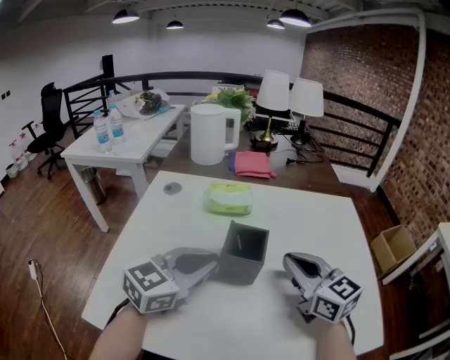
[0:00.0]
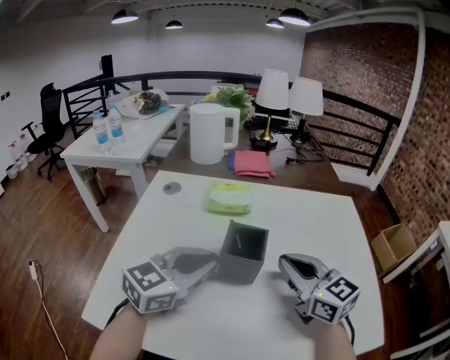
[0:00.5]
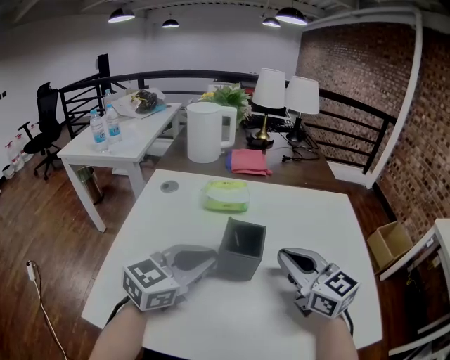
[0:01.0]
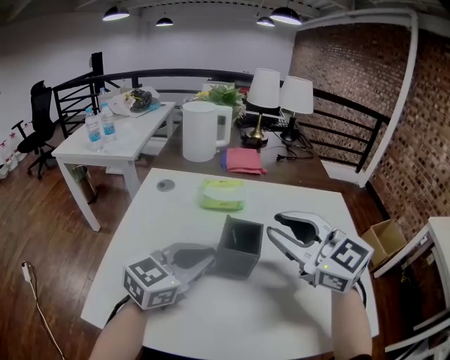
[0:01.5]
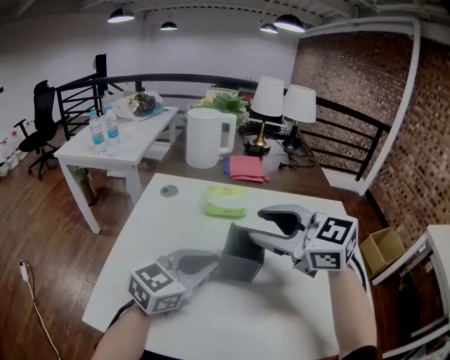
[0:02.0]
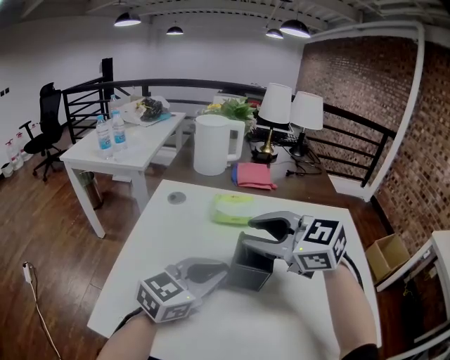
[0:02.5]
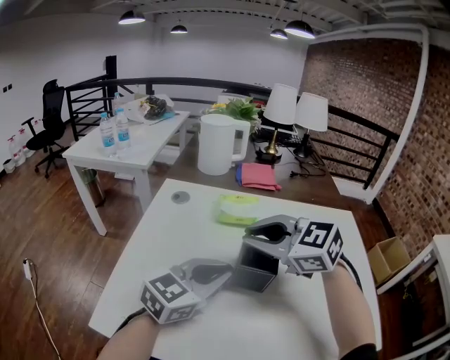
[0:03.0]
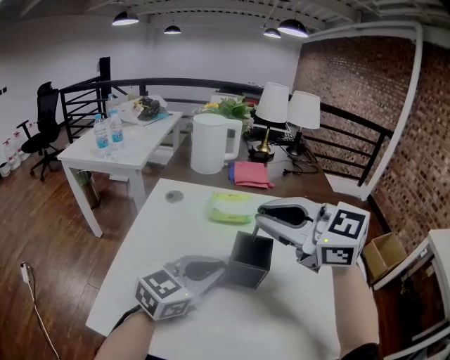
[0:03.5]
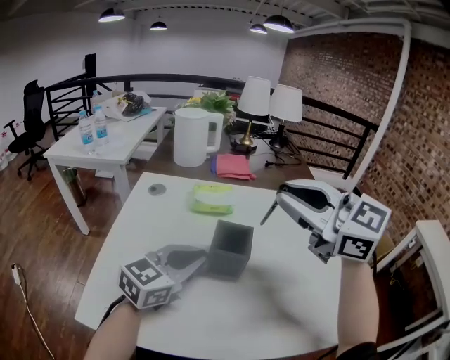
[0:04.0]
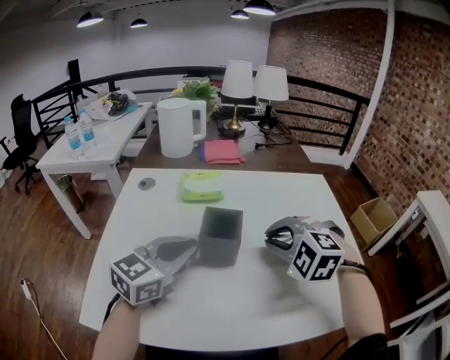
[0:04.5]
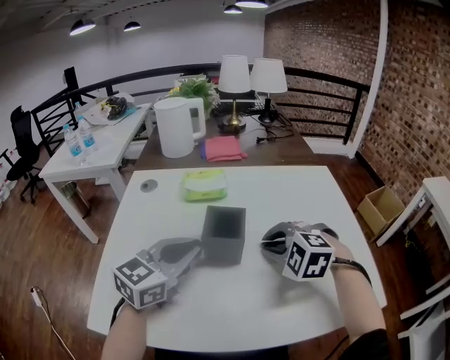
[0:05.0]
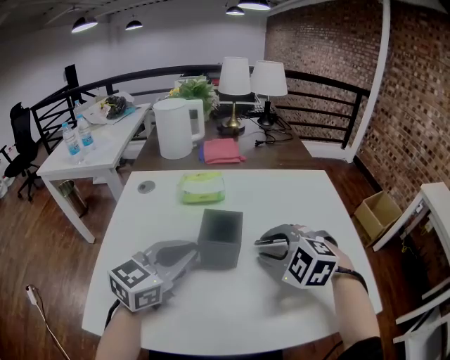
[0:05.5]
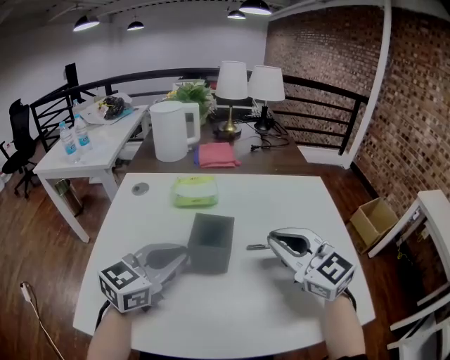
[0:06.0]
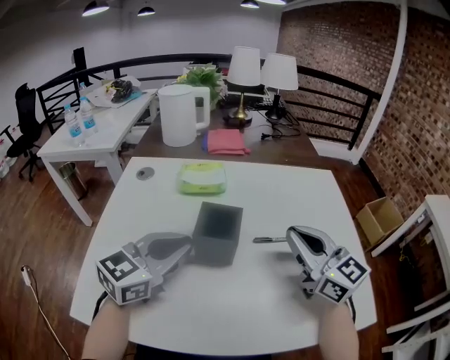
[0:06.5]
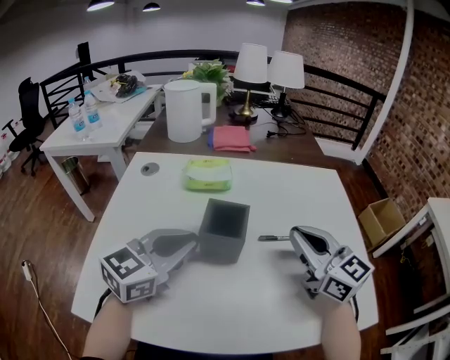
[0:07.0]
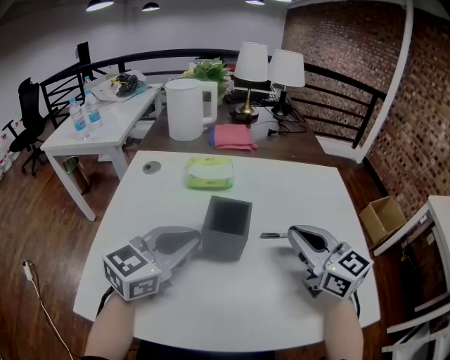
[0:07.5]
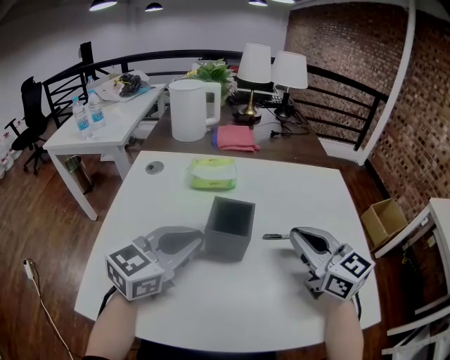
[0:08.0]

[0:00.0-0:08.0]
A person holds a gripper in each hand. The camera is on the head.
0:00.0 to 0:02.0: The right gripper shifts some 15 cm to the left and upward, turns by approximately 30 degrees, and opens its fingers.
0:02.0 to 0:04.0: The right gripper heads upward, covering approximately 10 cm, and closes.
0:04.0 to 0:06.0: The right gripper goes roughly 15 cm downward and to the right.

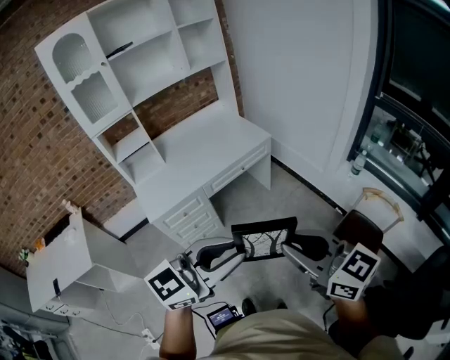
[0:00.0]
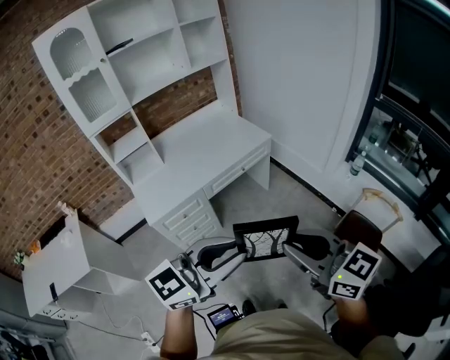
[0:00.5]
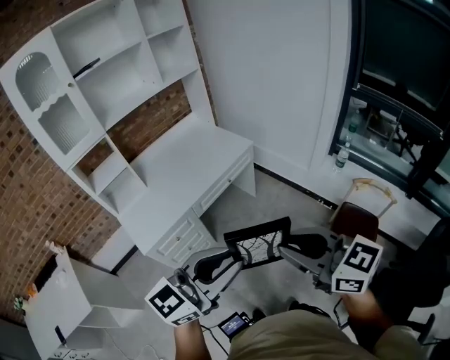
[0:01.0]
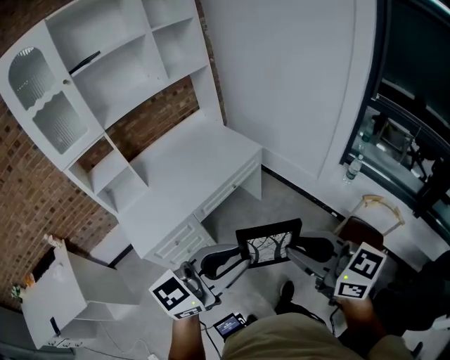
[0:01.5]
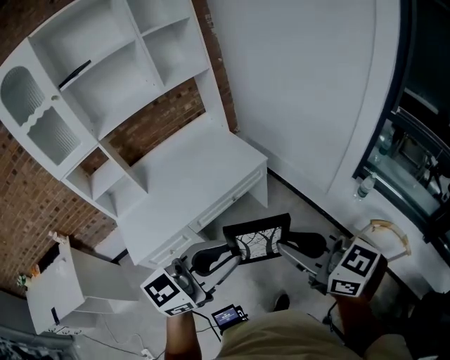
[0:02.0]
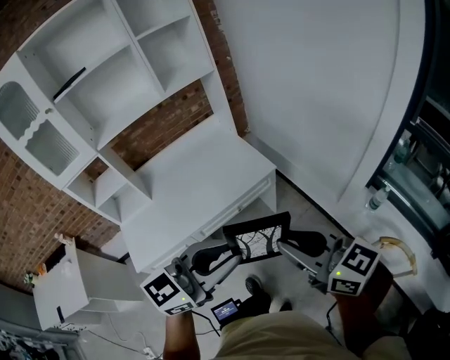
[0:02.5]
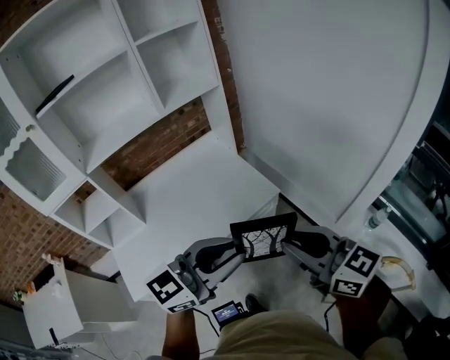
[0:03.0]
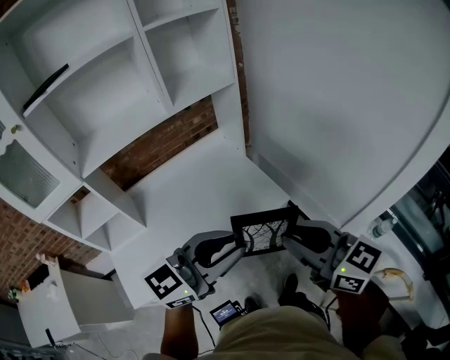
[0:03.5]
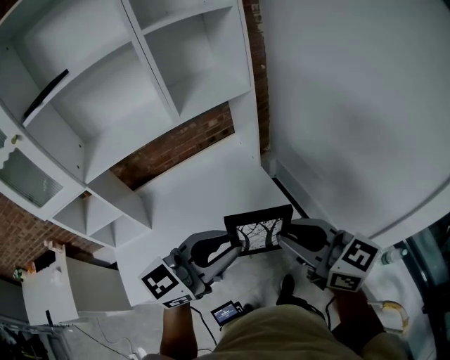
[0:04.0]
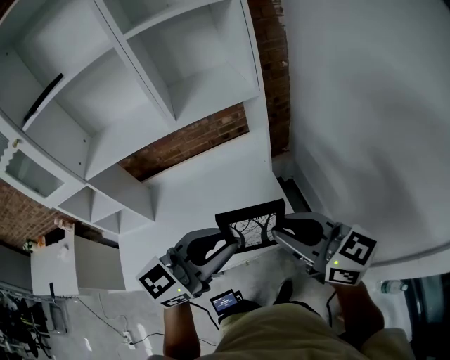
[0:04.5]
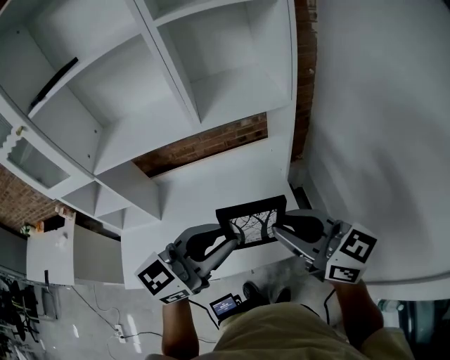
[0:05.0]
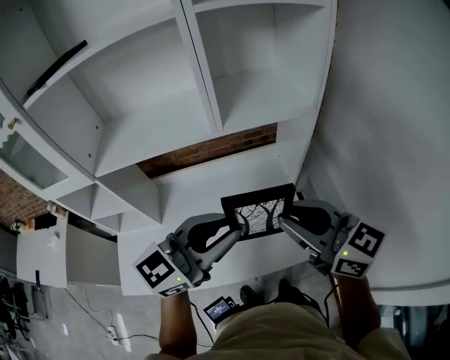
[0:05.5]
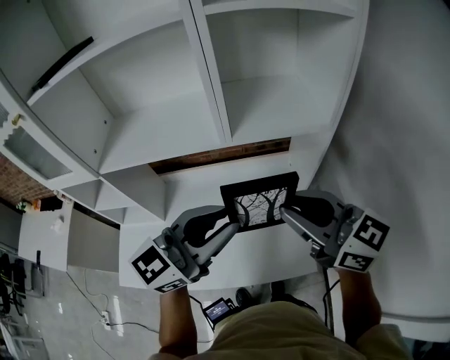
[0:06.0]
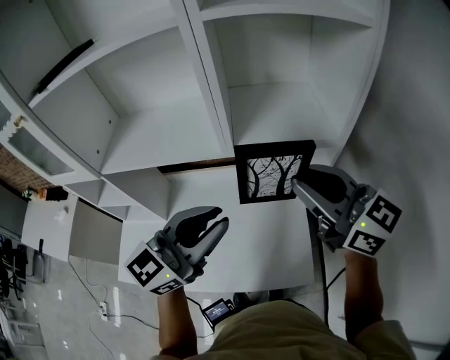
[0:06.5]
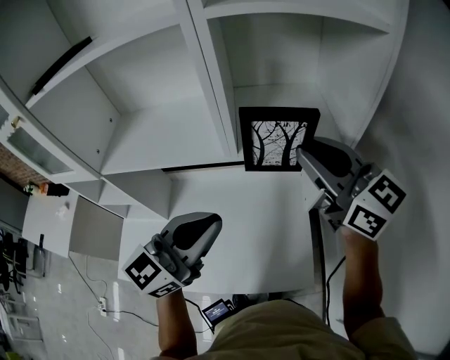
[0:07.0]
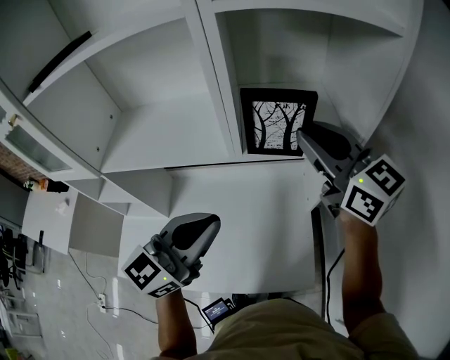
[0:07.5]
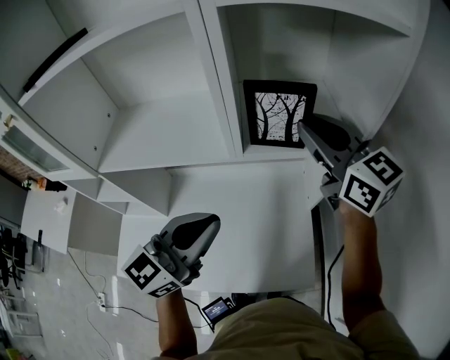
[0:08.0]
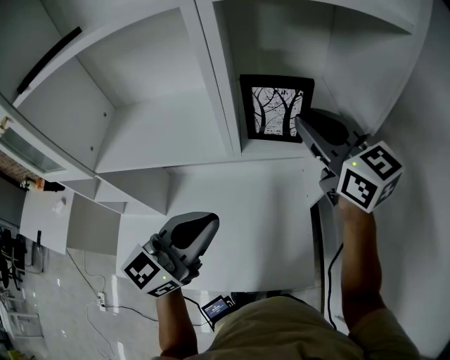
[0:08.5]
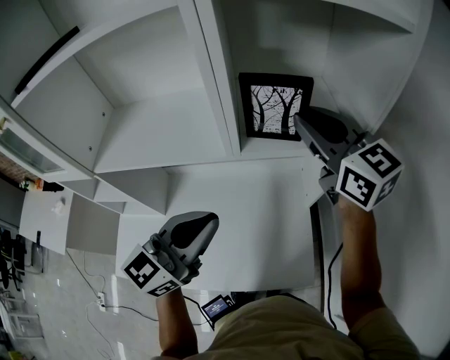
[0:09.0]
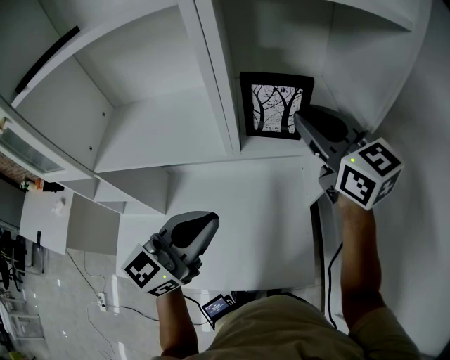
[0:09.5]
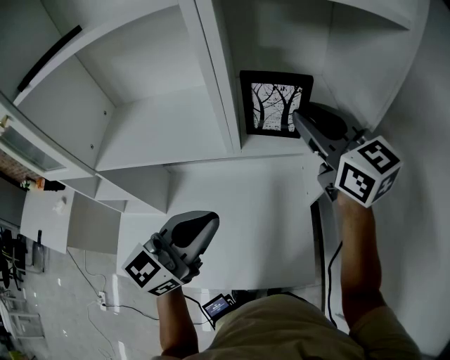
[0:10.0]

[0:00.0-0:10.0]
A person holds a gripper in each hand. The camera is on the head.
0:00.0 to 0:02.0: The grippers both shift forward by about 30 cm.
0:02.0 to 0:04.0: The pair of grippers is taken forward, approximately 40 cm.
0:04.0 to 0:06.0: Both grippers move forward, about 25 cm. The right gripper swivels roughly 20 degrees. Meanwhile the left gripper changes its angle by about 20 degrees.
0:06.0 to 0:08.0: The left gripper travels forward by about 10 cm. The right gripper travels forward by roughly 20 cm.
0:08.0 to 0:10.0: Both grippers stay put.

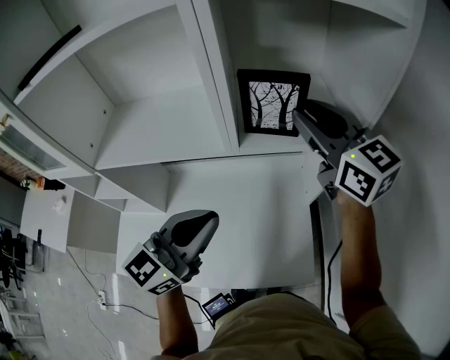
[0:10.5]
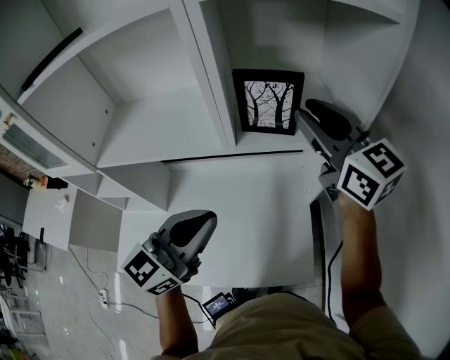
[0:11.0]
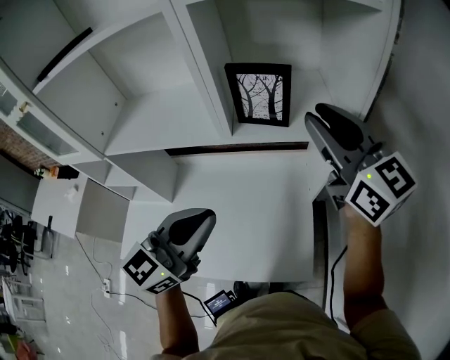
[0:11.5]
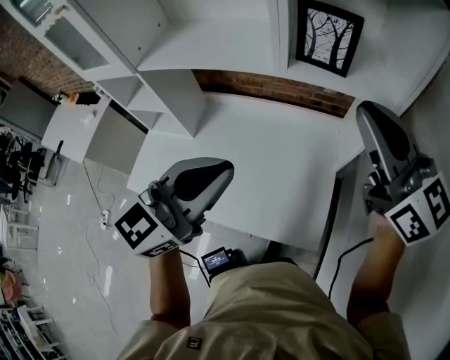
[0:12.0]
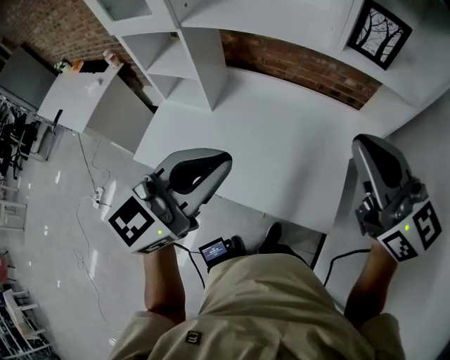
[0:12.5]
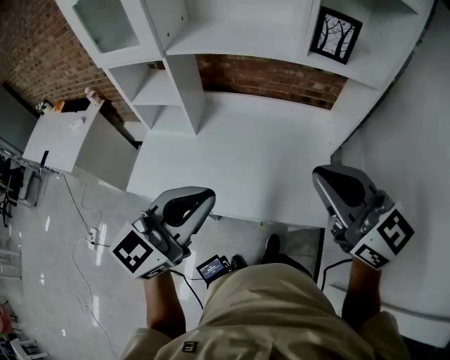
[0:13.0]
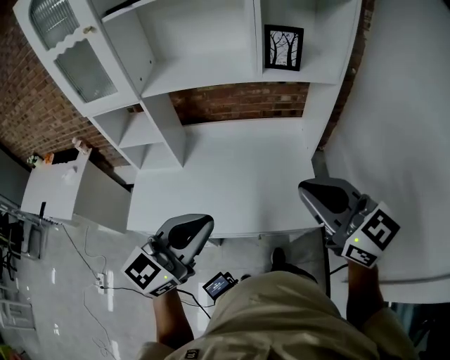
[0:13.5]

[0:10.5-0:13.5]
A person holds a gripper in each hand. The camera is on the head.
0:10.5 to 0:12.0: The right gripper travels backward by approximately 15 cm. The left gripper heads backward, covering some 10 cm.
0:12.0 to 0:13.5: Both grippers travel together backward and to the left, approximately 25 cm.

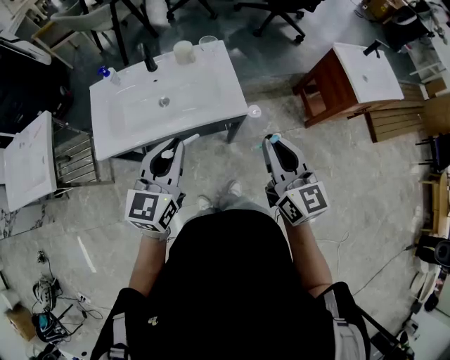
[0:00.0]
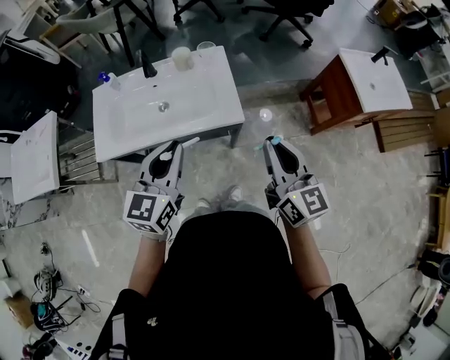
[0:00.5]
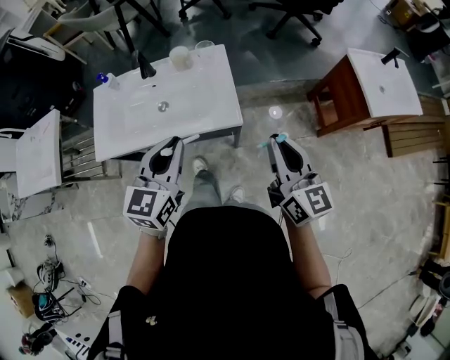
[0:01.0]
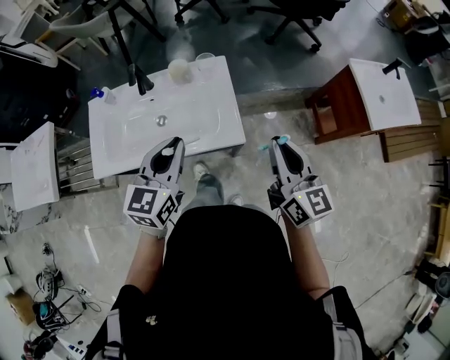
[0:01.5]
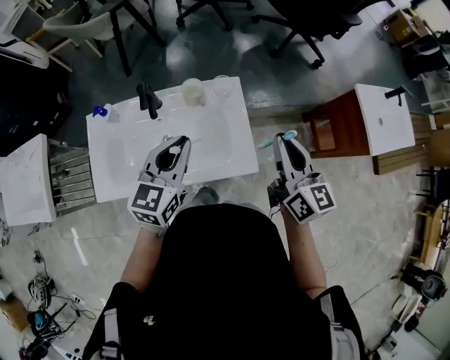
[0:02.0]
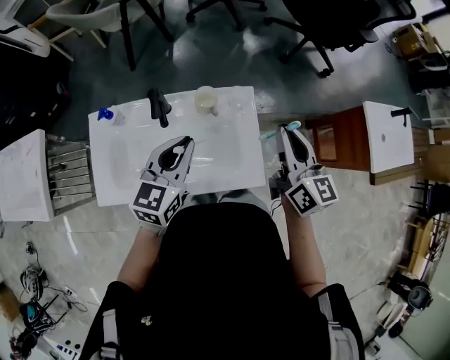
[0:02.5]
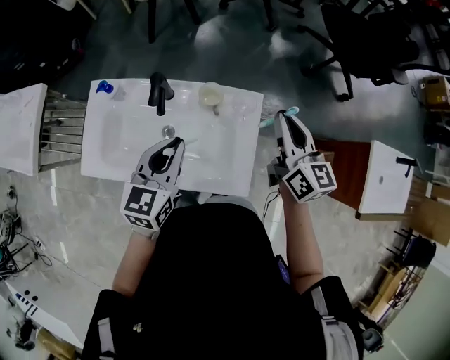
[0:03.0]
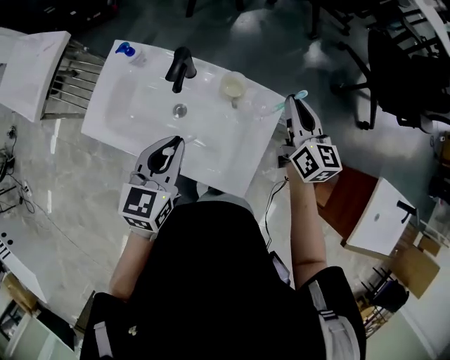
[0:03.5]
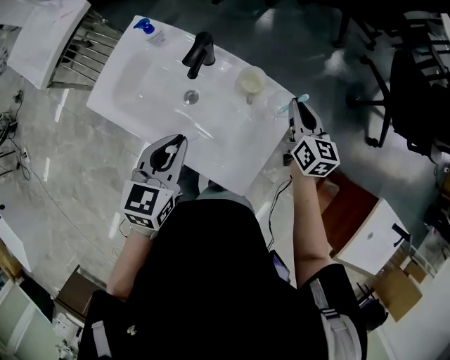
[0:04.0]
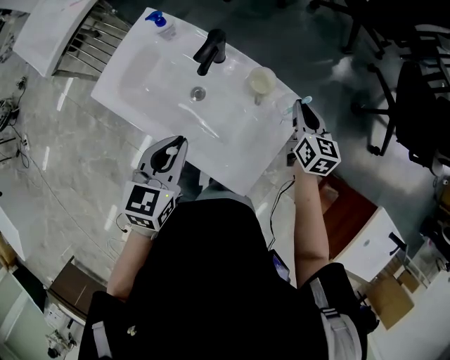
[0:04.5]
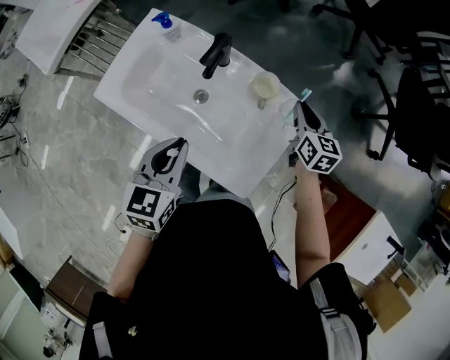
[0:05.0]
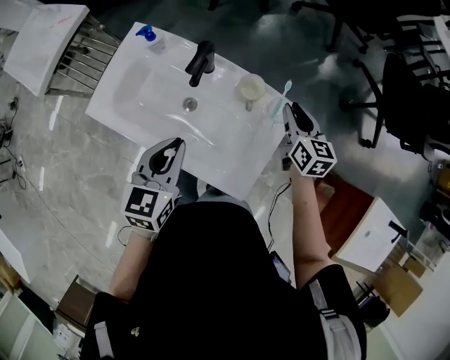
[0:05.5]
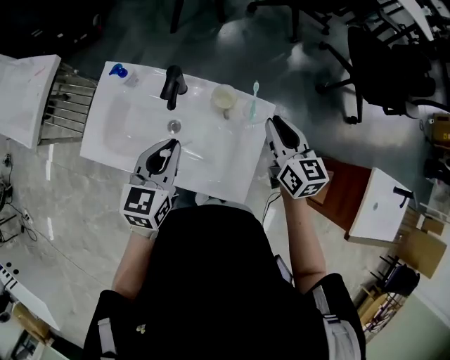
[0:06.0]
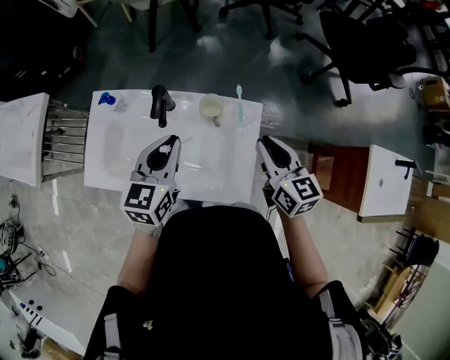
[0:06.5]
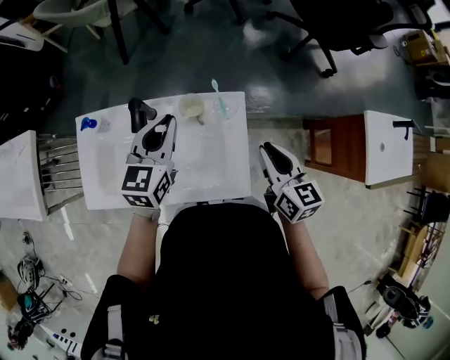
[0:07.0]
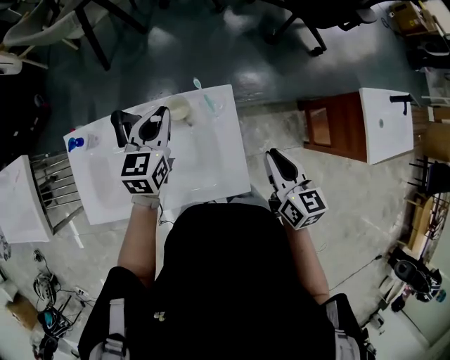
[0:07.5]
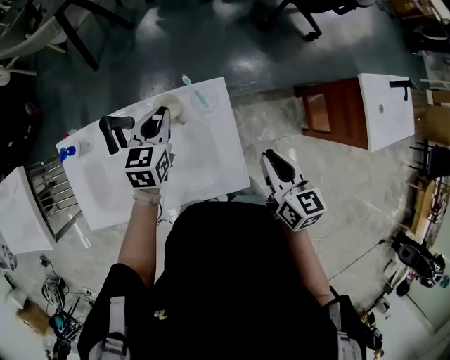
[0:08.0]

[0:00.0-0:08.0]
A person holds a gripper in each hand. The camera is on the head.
0:00.0 to 0:02.0: The grippers both shift forward by about 25 cm.
0:02.0 to 0:04.0: The left gripper heads downward, covering roughly 5 cm, and rotates roughly 40 degrees; the right gripper shifts by roughly 30 cm, and rotates some 40 degrees.
0:04.0 to 0:06.0: The left gripper goes about 5 cm forward; the right gripper heads upward and backward, covering about 10 cm.
0:06.0 to 0:08.0: The left gripper shifts approximately 20 cm forward, to the right and downward, and turns by approximately 20 degrees; the right gripper shifts roughly 15 cm backward and to the right, and rotates about 30 degrees.
